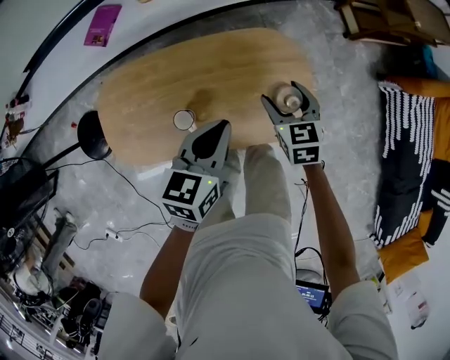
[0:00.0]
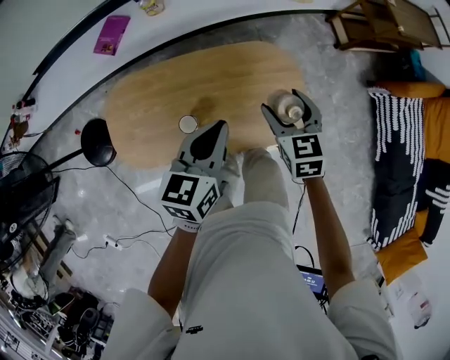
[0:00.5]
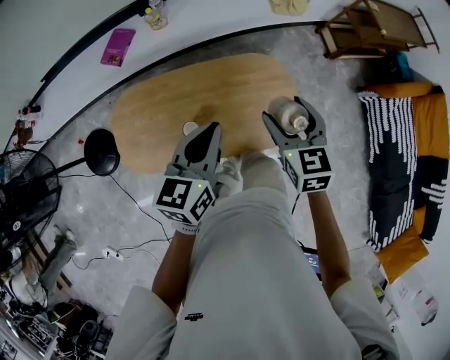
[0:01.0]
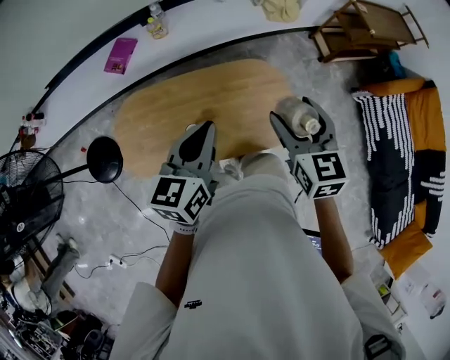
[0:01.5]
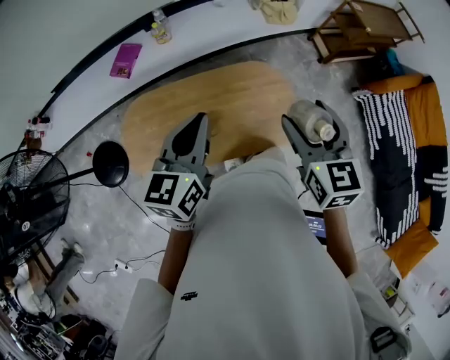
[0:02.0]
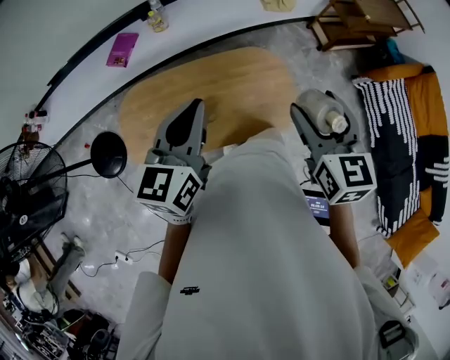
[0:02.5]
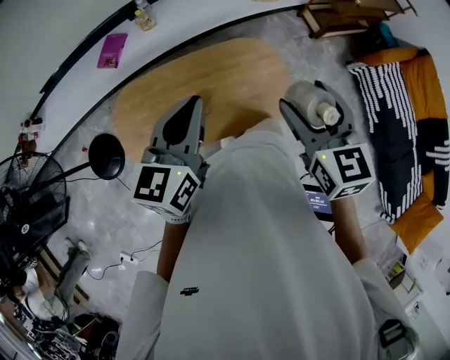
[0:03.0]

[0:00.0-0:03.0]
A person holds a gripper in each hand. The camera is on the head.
0:00.0 to 0:01.5: The grippers both shift upward by some 20 cm.
0:01.5 to 0:03.0: The right gripper is displaced backward and upward by roughly 10 cm, while the left gripper goes about 5 cm upward.

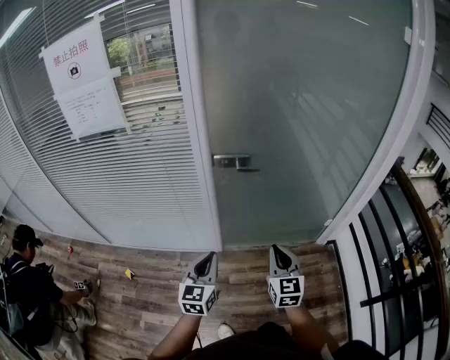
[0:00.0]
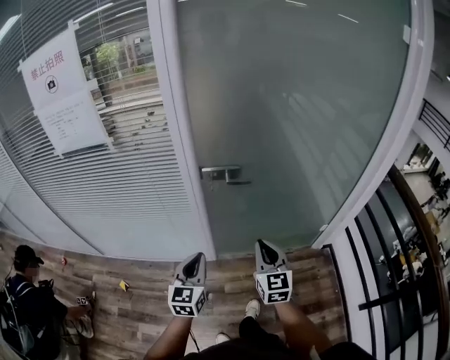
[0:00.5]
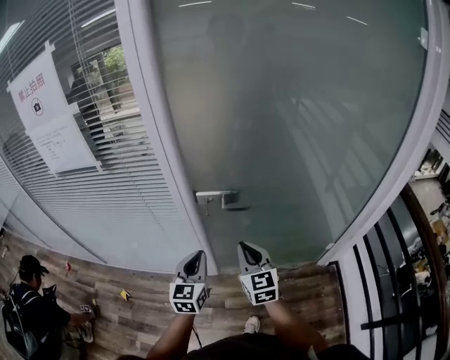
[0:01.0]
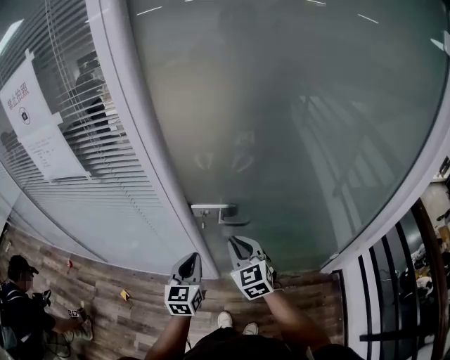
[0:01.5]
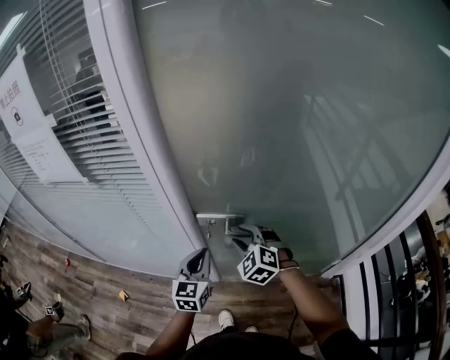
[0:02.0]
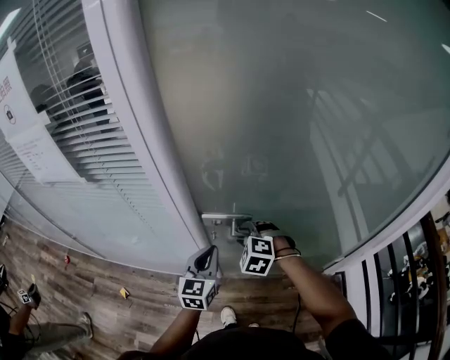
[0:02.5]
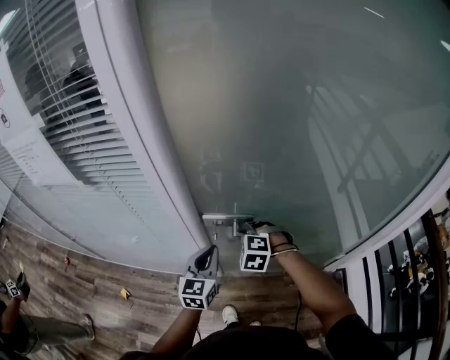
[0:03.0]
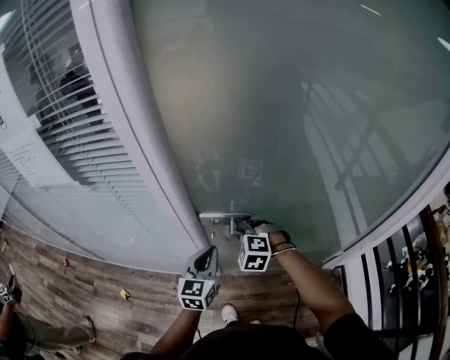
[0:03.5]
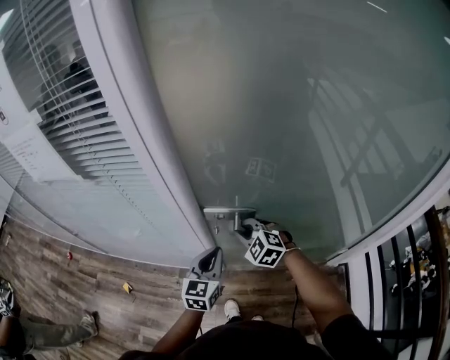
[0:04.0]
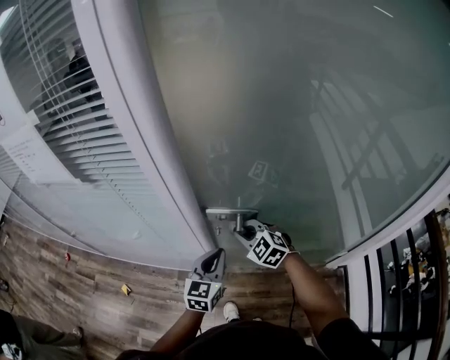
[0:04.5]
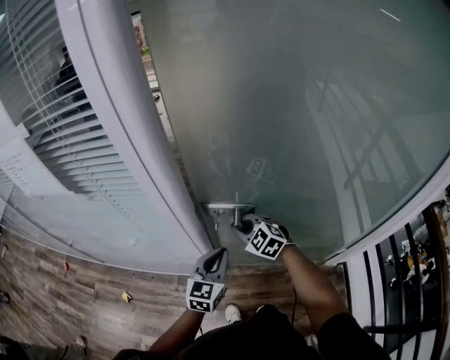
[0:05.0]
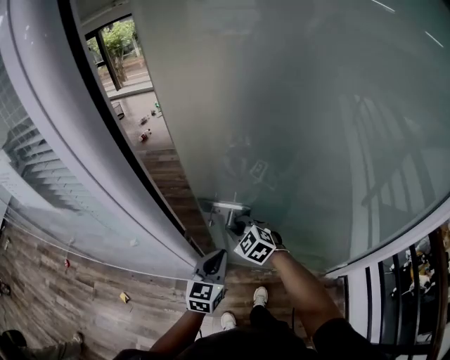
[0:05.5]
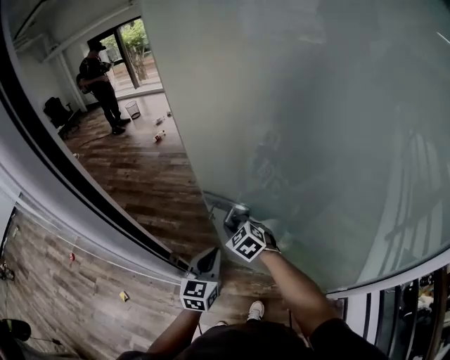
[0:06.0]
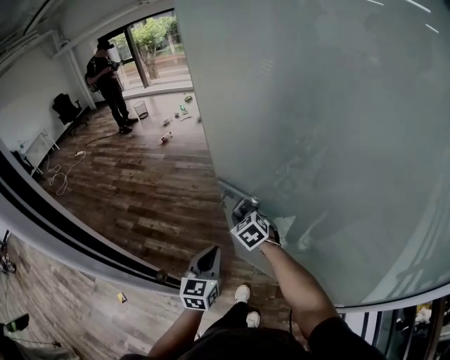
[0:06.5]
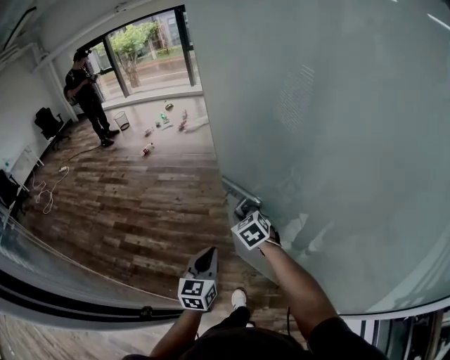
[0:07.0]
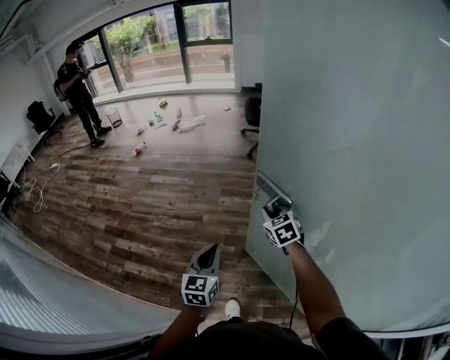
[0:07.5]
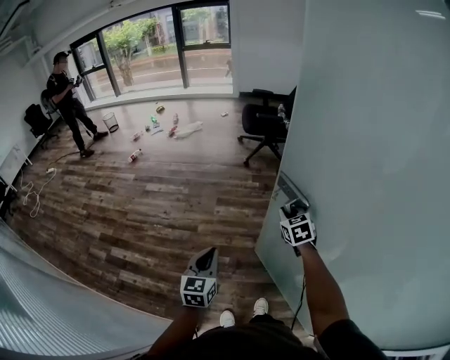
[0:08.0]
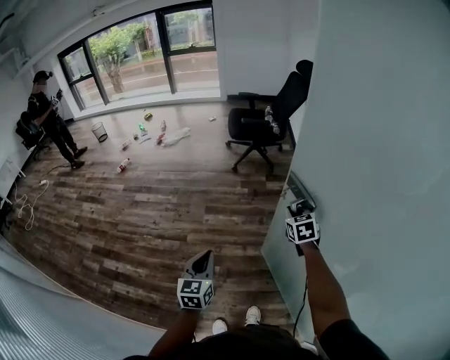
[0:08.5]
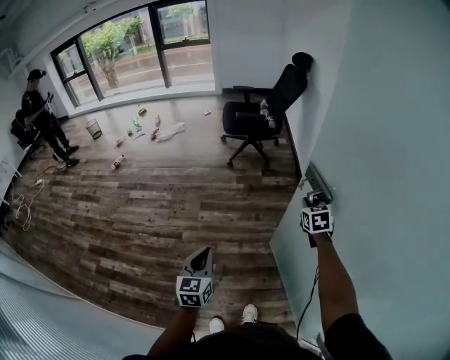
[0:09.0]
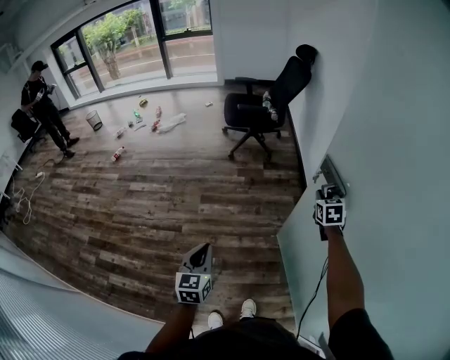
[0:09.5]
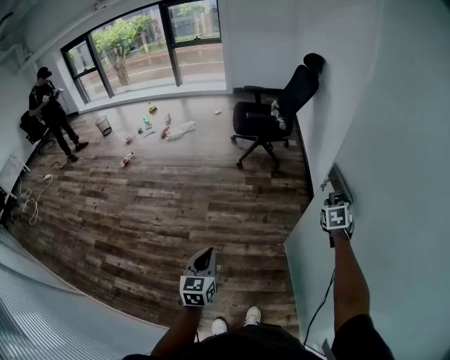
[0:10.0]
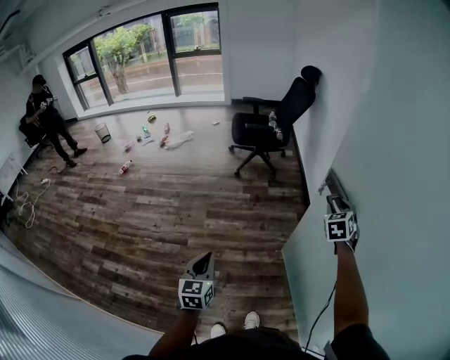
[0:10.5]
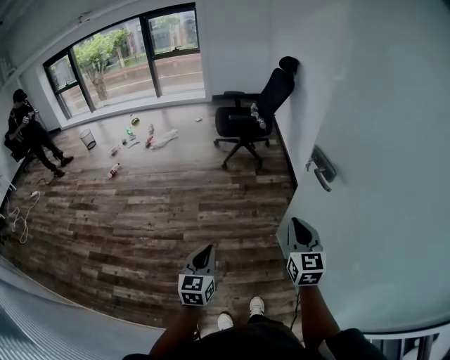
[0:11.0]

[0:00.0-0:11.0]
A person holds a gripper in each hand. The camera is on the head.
0:00.0 to 0:02.0: The grippers both shift forward by some 35 cm. The right gripper rolls counterclockwise, seen from behind, by about 50 degrees, and opens up.
0:02.0 to 0:03.5: The right gripper heads downward, covering some 5 cm, changes its angle by approximately 20 degrees, and closes.
0:03.5 to 0:05.5: The left gripper heads forward and to the right, covering approximately 10 cm. Meanwhile the right gripper heads forward, covering about 15 cm, and rotates about 30 degrees.
0:05.5 to 0:07.5: Both grippers are carried forward and to the right, approximately 50 cm. The right gripper changes its angle by some 30 degrees.
0:07.5 to 0:09.0: The right gripper is displaced to the right and forward by roughly 40 cm, and rotates roughly 20 degrees. Meanwhile the left gripper is displaced forward and to the right by roughly 25 cm.
0:09.0 to 0:11.0: The right gripper goes about 30 cm backward and upward, rotates roughly 30 degrees, and opens and closes again. Meanwhile the left gripper shifts roughly 10 cm backward.

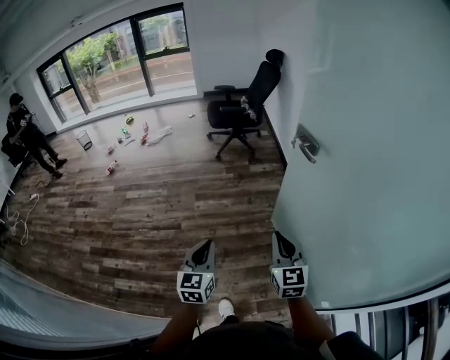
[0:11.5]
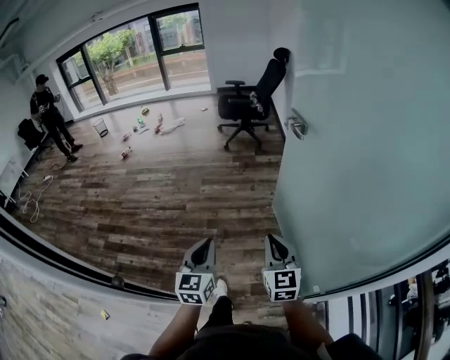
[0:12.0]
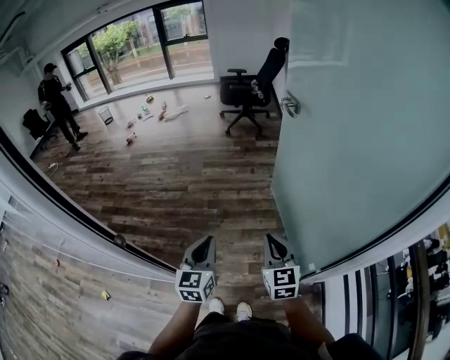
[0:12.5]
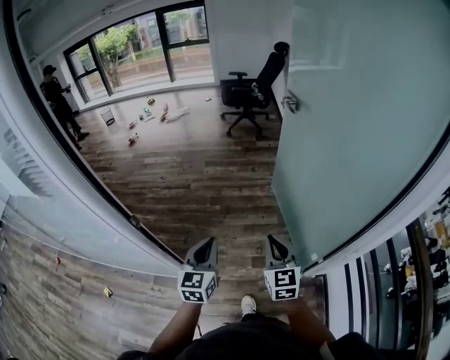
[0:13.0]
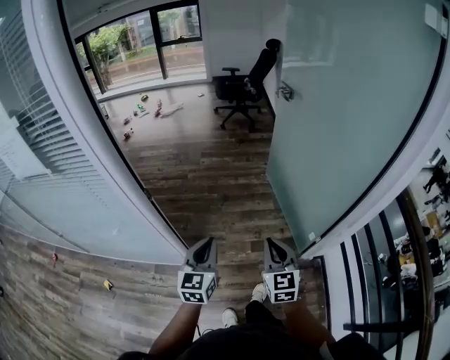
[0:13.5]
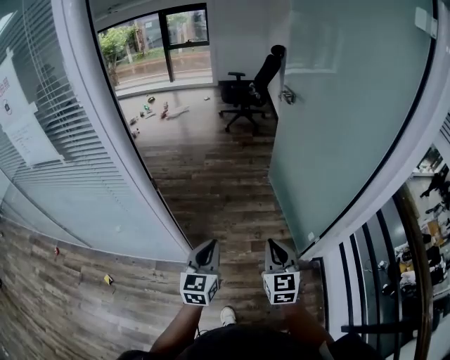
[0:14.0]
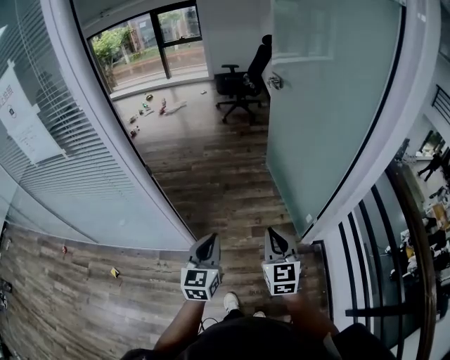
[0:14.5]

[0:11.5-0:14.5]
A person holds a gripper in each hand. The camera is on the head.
0:11.5 to 0:13.0: Both grippers are carried backward, approximately 40 cm.
0:13.0 to 0:14.5: The two grippers go about 25 cm backward.

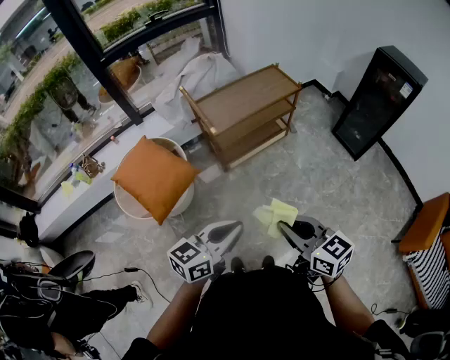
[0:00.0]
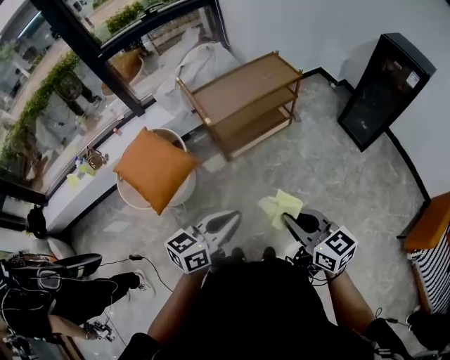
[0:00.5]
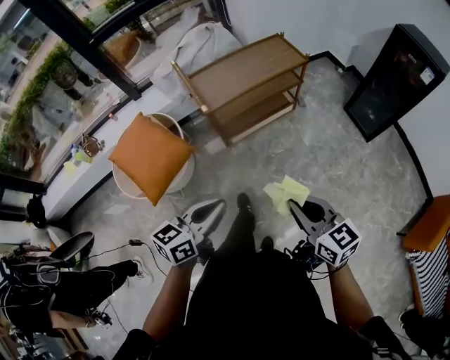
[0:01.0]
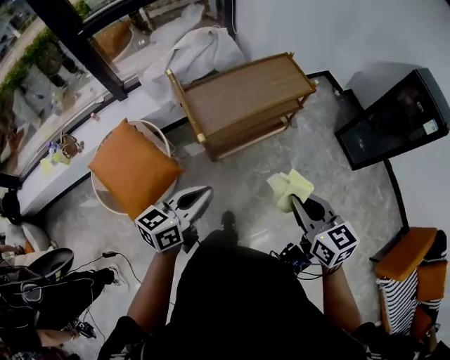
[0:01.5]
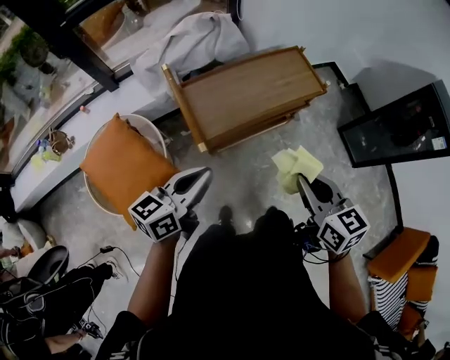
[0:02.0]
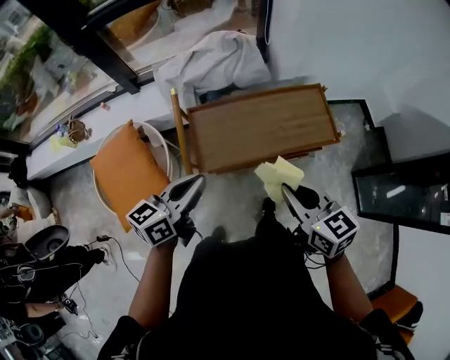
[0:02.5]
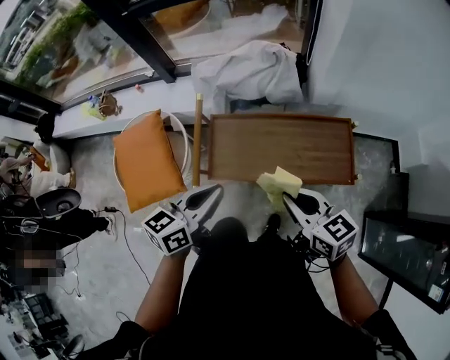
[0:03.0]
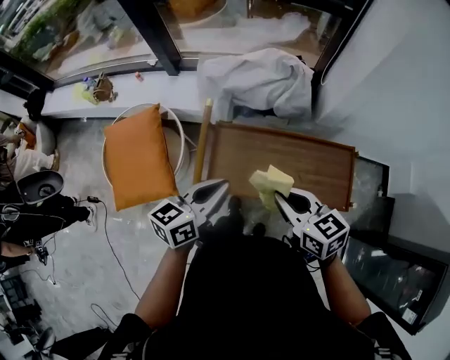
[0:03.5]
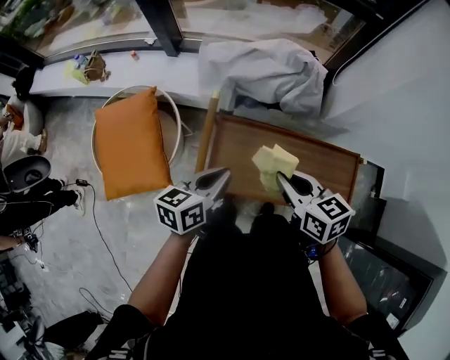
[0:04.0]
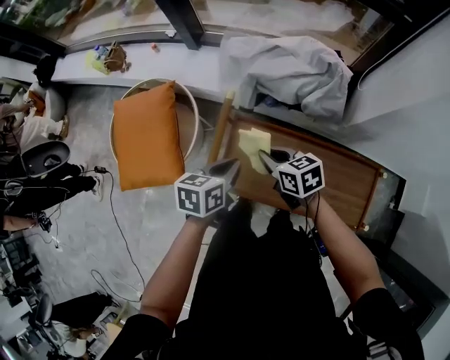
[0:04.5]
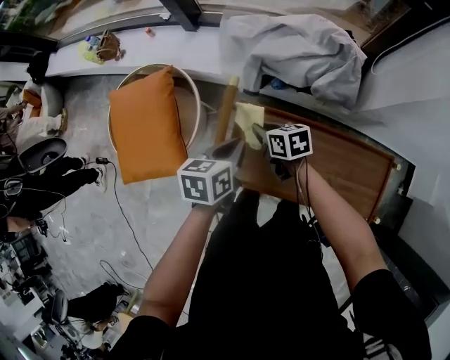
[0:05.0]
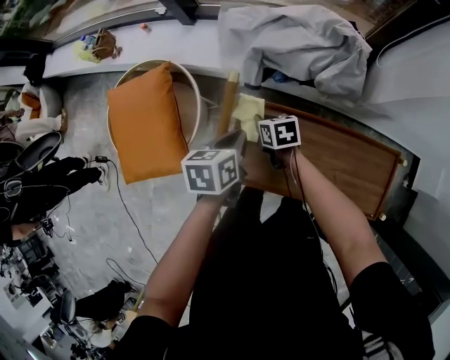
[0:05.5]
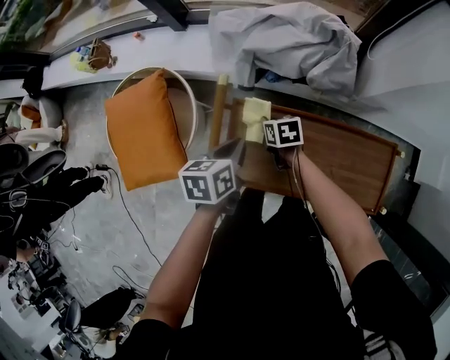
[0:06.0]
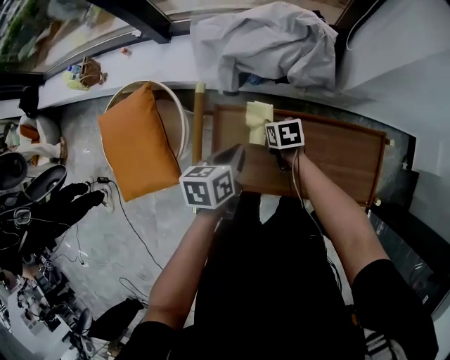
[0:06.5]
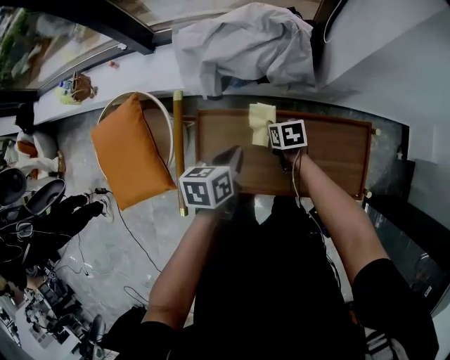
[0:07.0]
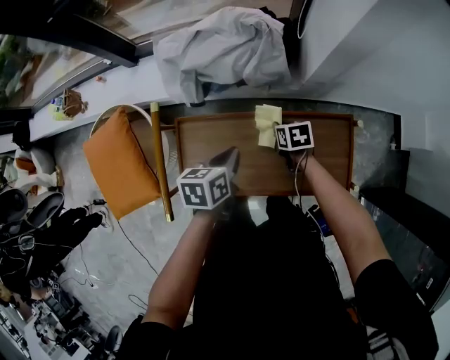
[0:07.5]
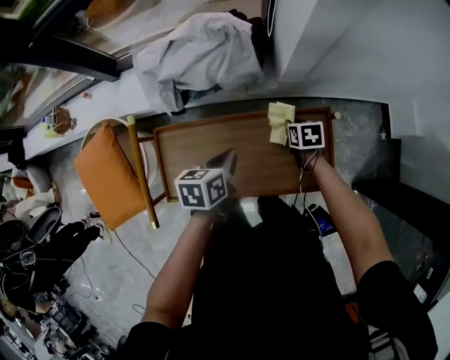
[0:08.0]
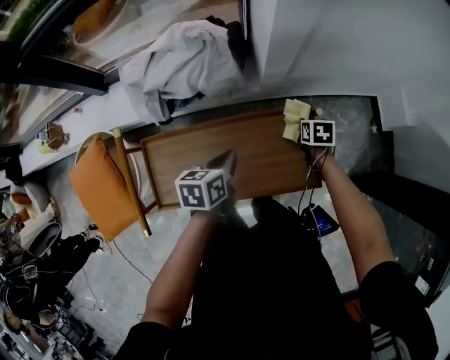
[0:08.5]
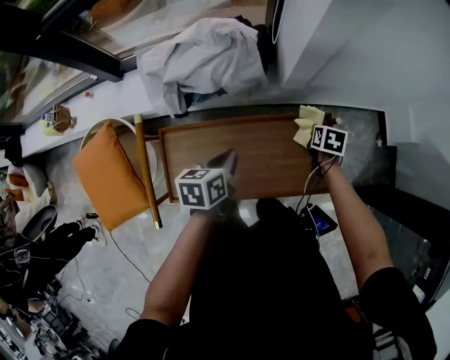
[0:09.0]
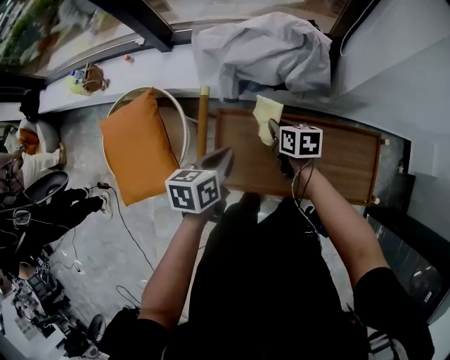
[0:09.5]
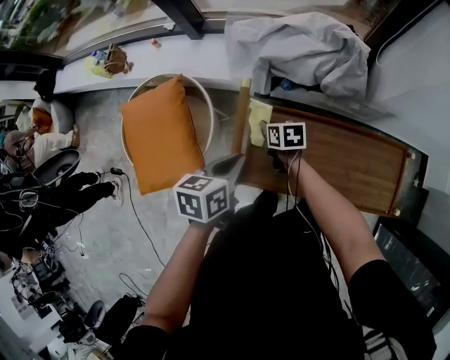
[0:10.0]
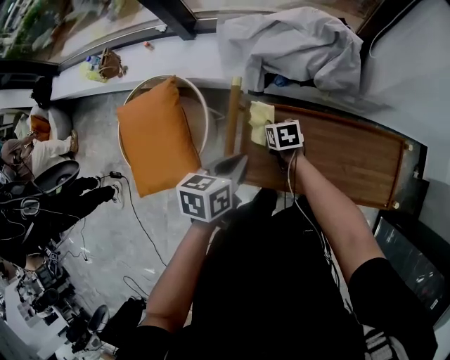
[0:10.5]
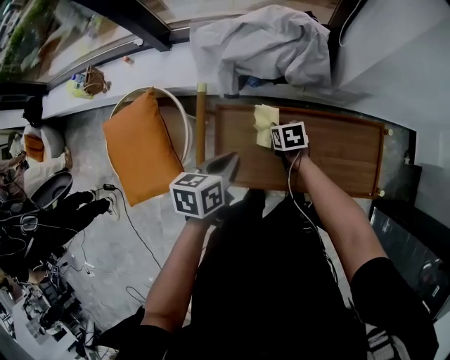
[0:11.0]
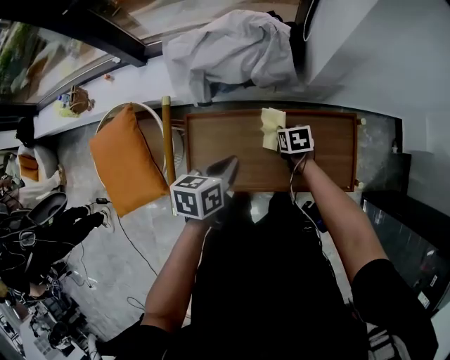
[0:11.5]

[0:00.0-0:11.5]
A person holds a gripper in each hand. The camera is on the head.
0:00.0 to 0:02.0: The two grippers go some 35 cm forward.
0:02.0 to 0:04.0: The left gripper ends up about 25 cm from where it was, and swivels about 40 degrees; the right gripper ends up some 35 cm from where it was, and rotates some 40 degrees.
0:04.0 to 0:06.0: The left gripper moves downward and forward, approximately 10 cm, and rotates some 20 degrees; the right gripper moves downward and forward, about 30 cm, and swivels approximately 30 degrees.
0:06.0 to 0:07.5: The grippers both shift to the right by some 20 cm.
0:07.5 to 0:09.5: The right gripper changes place by approximately 20 cm, while the left gripper shifts by about 15 cm.
0:09.5 to 0:11.5: The left gripper goes some 10 cm to the right. The right gripper travels to the right and downward by about 15 cm.
